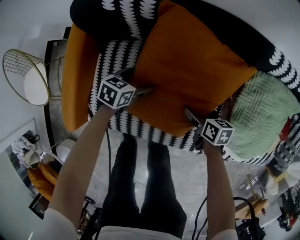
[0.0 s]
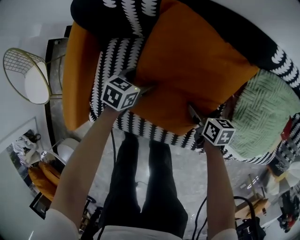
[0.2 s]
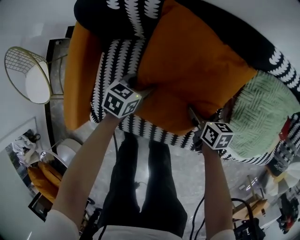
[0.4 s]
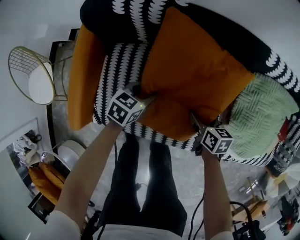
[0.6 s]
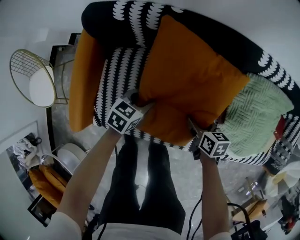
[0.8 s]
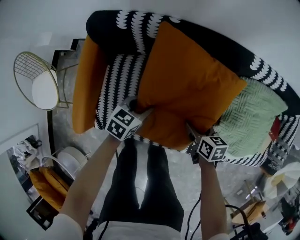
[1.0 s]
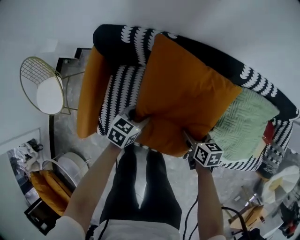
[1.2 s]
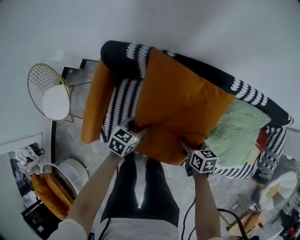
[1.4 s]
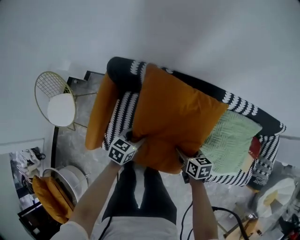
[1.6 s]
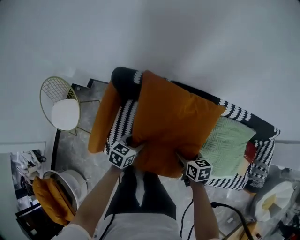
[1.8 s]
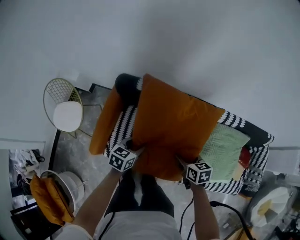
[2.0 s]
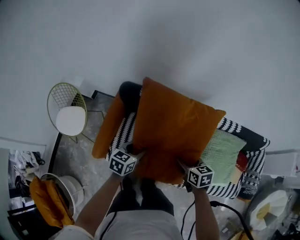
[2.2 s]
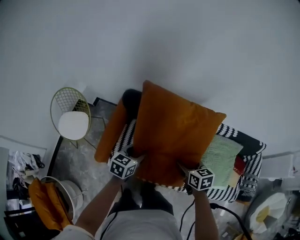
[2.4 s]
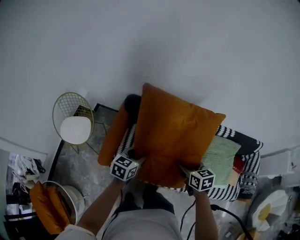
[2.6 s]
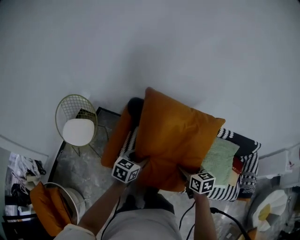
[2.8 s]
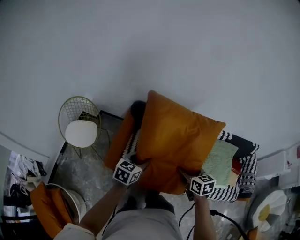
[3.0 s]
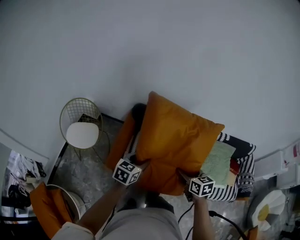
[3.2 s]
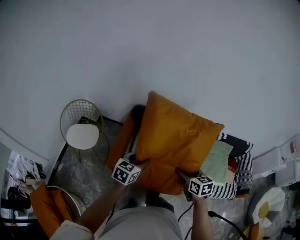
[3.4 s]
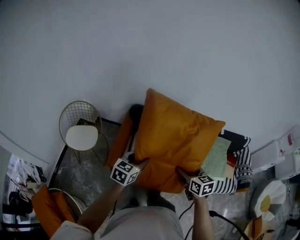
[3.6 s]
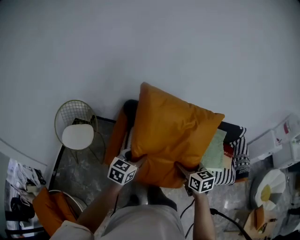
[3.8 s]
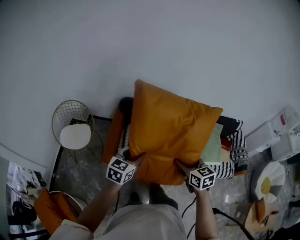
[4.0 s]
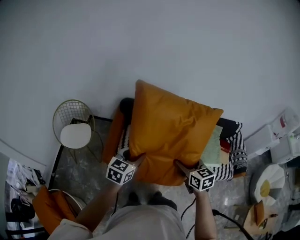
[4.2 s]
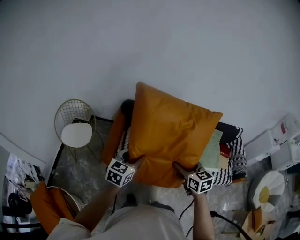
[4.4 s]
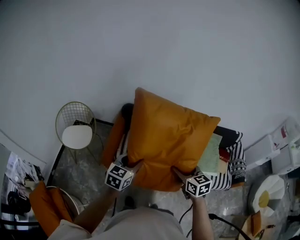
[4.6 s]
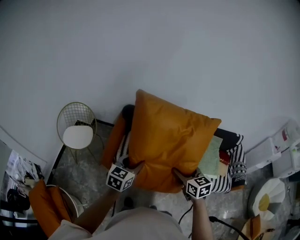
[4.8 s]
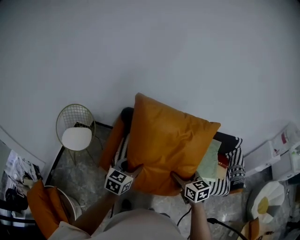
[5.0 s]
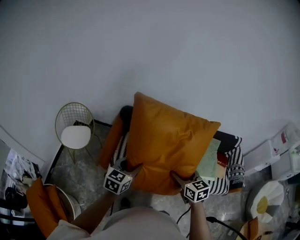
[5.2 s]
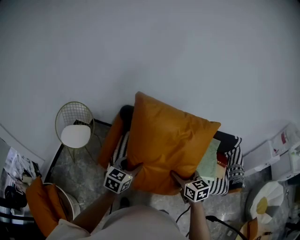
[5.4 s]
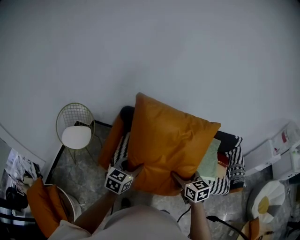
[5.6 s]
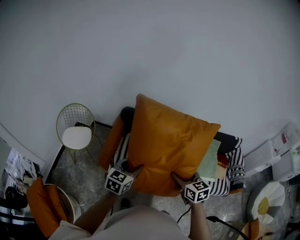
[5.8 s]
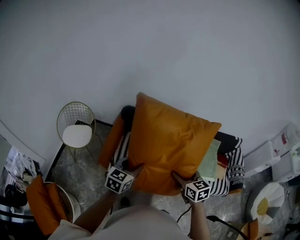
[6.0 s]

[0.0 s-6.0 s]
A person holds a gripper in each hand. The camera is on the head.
0.0 to 1.6 s: The grippers both shift upward by about 30 cm. The right gripper closes its fingers; the left gripper closes.
1.6 to 3.0 s: The two grippers go about 40 cm upward, backward and to the left.
3.0 to 4.4 s: The grippers both shift backward and upward by approximately 20 cm.
4.4 to 6.0 s: Both grippers move to the right, some 5 cm.

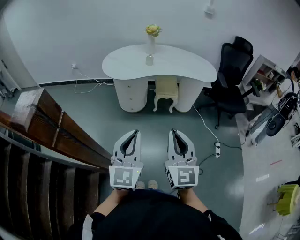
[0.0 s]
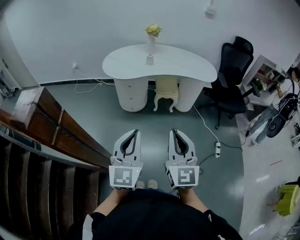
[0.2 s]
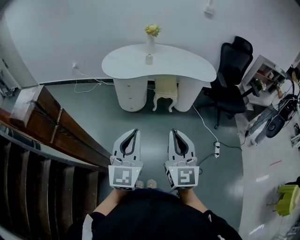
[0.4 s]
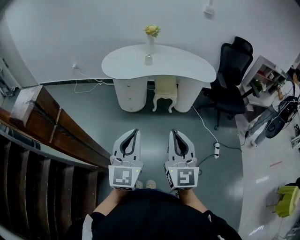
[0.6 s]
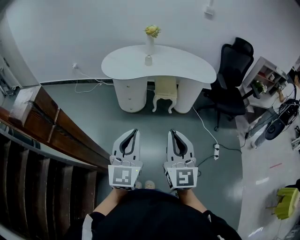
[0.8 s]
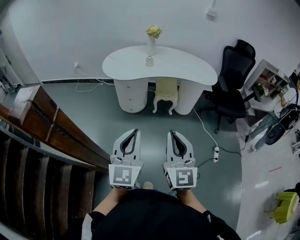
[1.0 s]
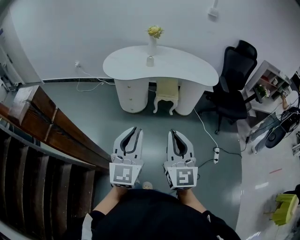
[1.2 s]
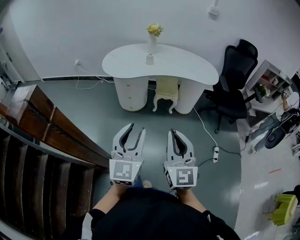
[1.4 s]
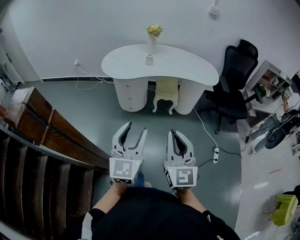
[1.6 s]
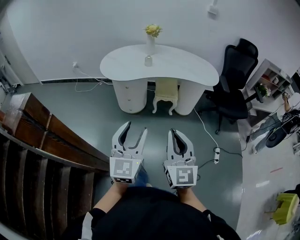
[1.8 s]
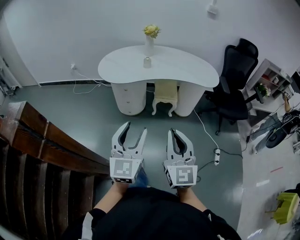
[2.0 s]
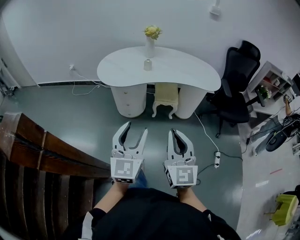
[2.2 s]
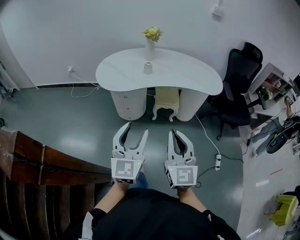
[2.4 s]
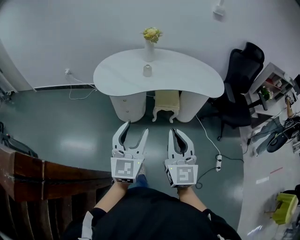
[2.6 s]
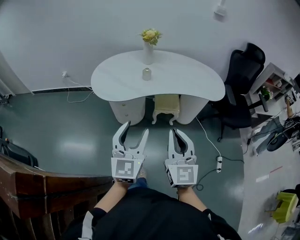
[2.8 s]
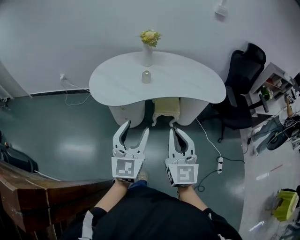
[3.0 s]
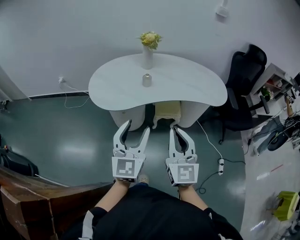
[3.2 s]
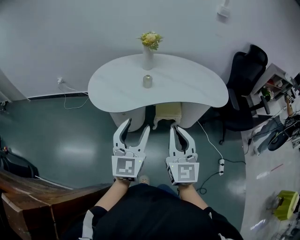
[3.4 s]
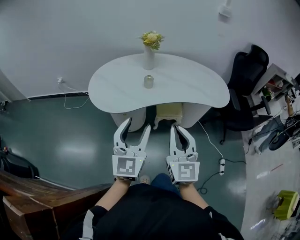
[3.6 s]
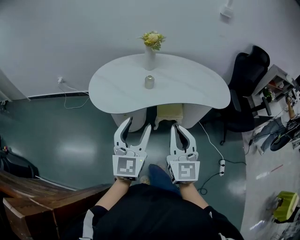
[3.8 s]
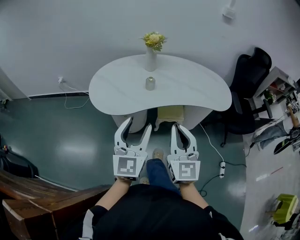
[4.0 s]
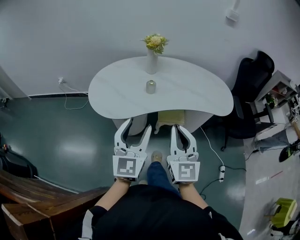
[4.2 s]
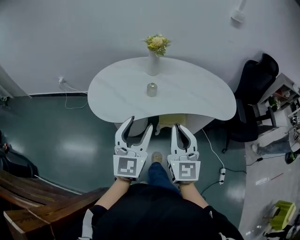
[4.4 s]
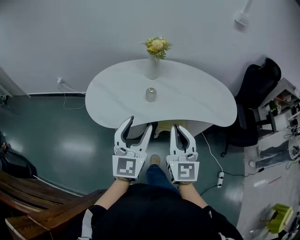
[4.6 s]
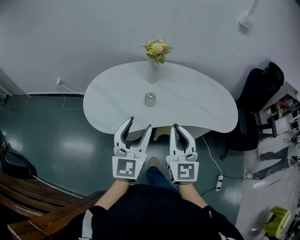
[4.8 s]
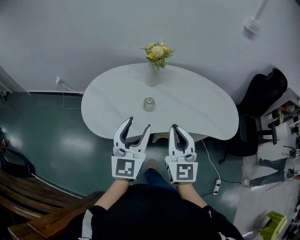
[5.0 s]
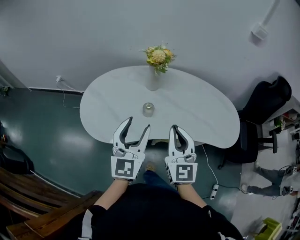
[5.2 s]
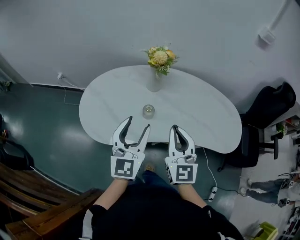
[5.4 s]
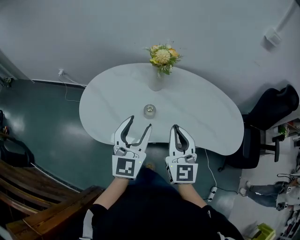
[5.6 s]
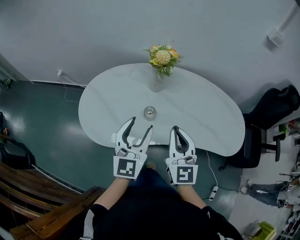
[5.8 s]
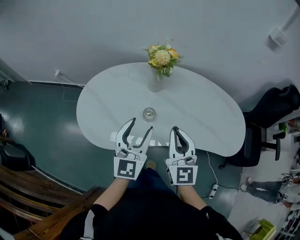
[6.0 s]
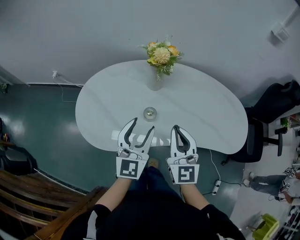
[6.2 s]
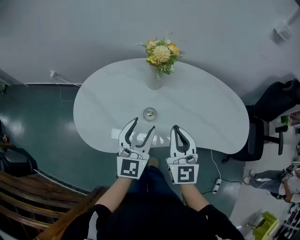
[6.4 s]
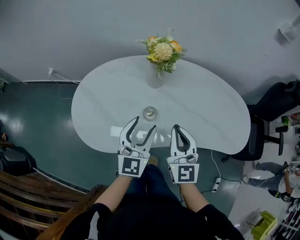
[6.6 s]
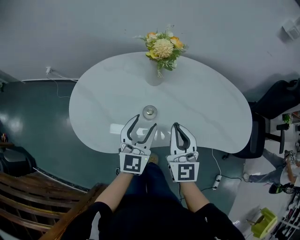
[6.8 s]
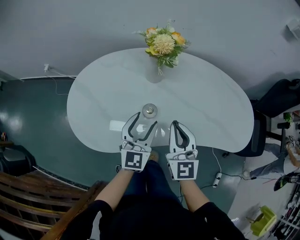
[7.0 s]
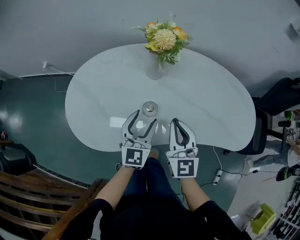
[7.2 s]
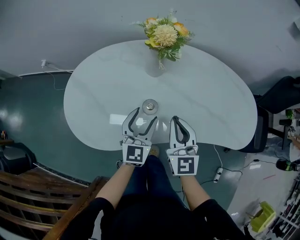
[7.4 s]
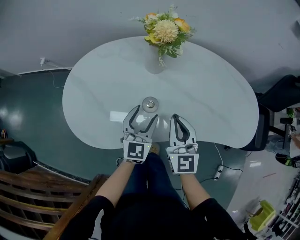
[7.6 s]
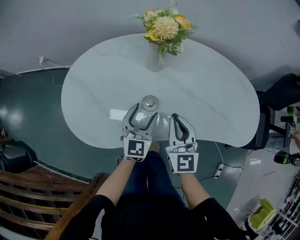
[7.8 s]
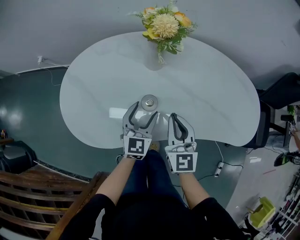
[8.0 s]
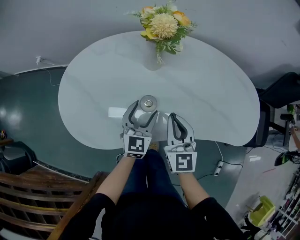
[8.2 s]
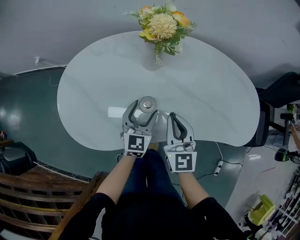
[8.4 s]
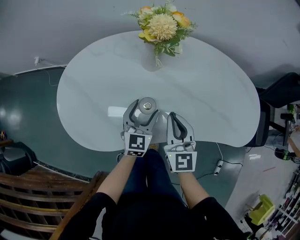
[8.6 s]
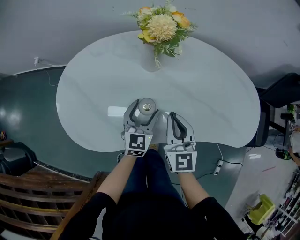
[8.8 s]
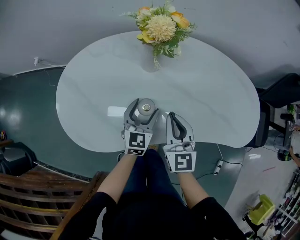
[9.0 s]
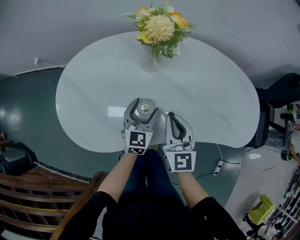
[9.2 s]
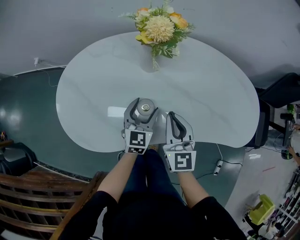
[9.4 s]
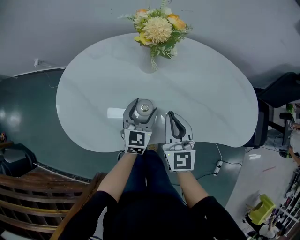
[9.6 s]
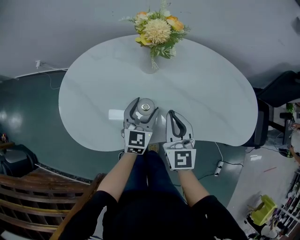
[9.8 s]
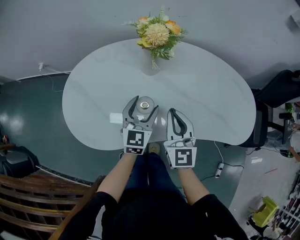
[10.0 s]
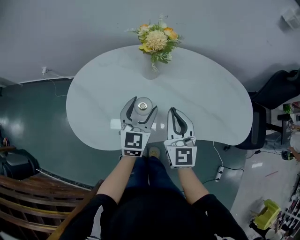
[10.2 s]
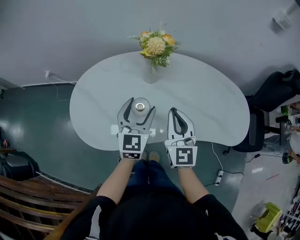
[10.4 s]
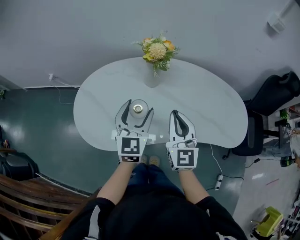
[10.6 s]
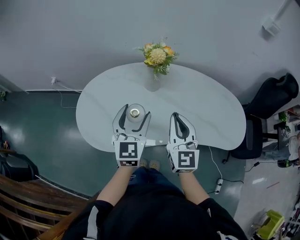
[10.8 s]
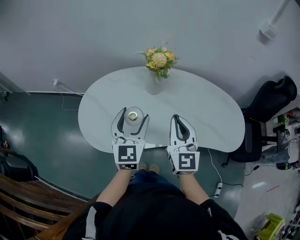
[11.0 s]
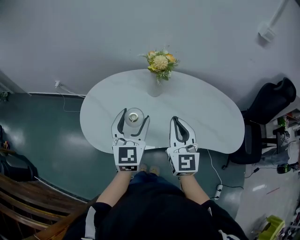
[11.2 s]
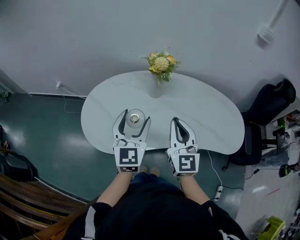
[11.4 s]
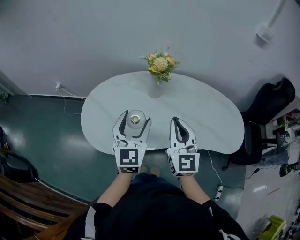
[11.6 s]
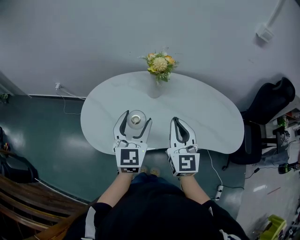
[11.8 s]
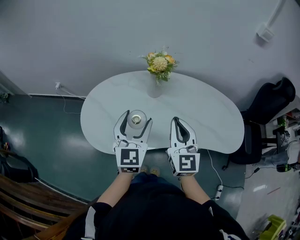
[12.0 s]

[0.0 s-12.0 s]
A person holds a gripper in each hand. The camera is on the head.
0.0 to 1.6 s: The right gripper ends up approximately 5 cm from where it was. Meanwhile the left gripper goes some 5 cm to the right, and opens its fingers.
1.6 to 3.0 s: Both grippers move forward, roughly 30 cm.
3.0 to 4.4 s: Both grippers travel together forward, about 15 cm.
4.4 to 6.0 s: The grippers both shift forward by about 25 cm.
6.0 to 7.6 s: The two grippers go roughly 15 cm downward and forward.
7.6 to 9.0 s: The left gripper changes place by roughly 5 cm.
9.0 to 10.4 s: The left gripper moves upward, some 15 cm, while the right gripper heads upward, covering about 10 cm.
10.4 to 12.0 s: The left gripper goes approximately 10 cm upward and backward; the right gripper is displaced upward by approximately 10 cm.

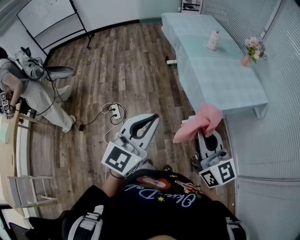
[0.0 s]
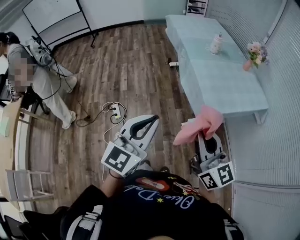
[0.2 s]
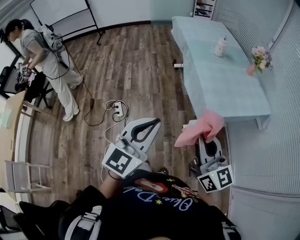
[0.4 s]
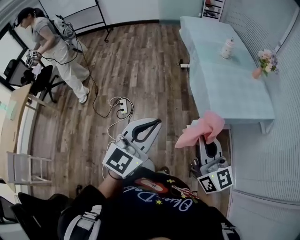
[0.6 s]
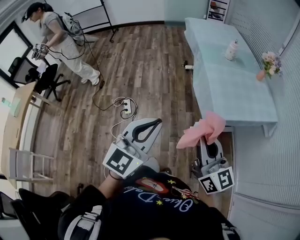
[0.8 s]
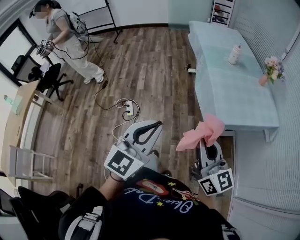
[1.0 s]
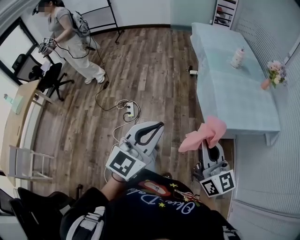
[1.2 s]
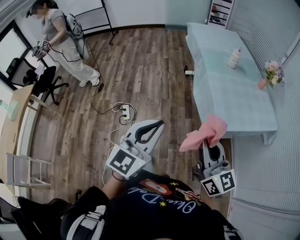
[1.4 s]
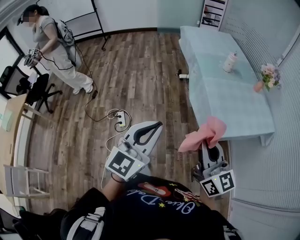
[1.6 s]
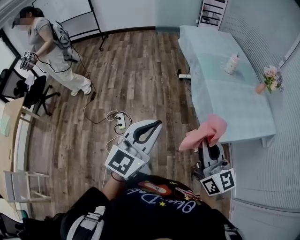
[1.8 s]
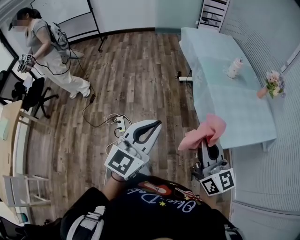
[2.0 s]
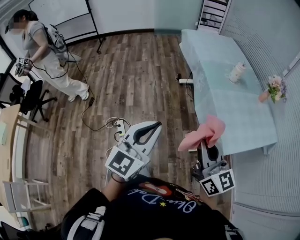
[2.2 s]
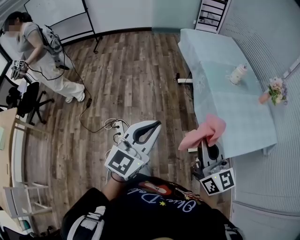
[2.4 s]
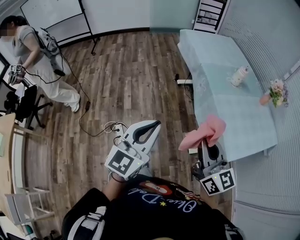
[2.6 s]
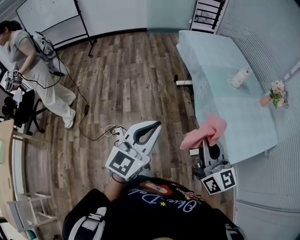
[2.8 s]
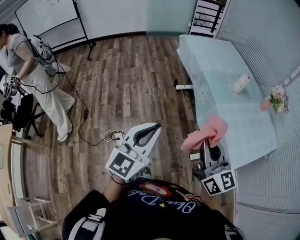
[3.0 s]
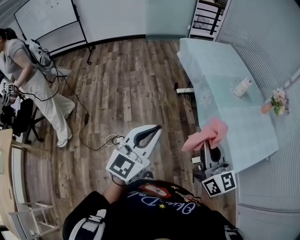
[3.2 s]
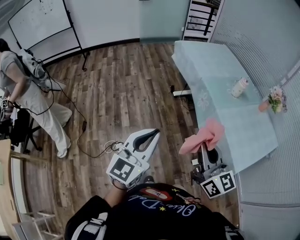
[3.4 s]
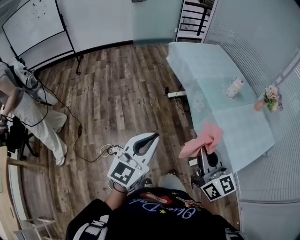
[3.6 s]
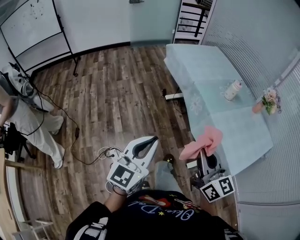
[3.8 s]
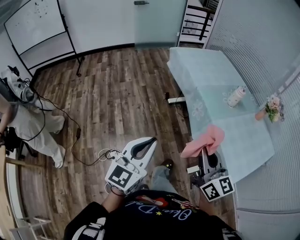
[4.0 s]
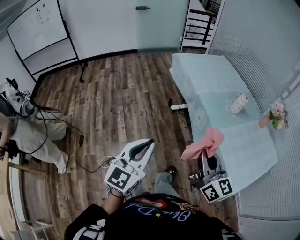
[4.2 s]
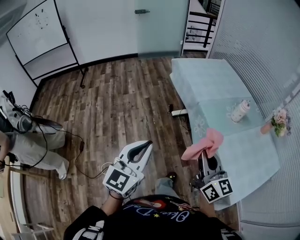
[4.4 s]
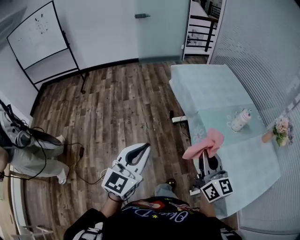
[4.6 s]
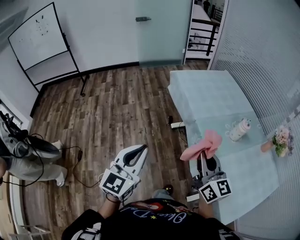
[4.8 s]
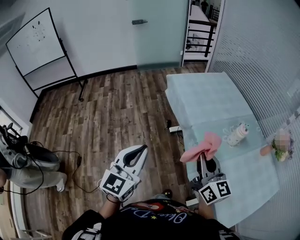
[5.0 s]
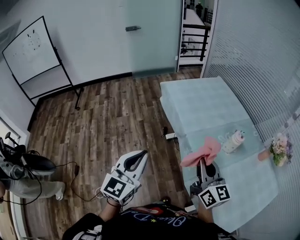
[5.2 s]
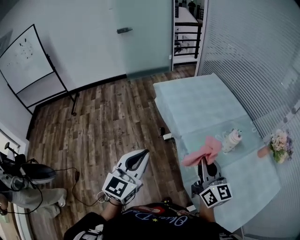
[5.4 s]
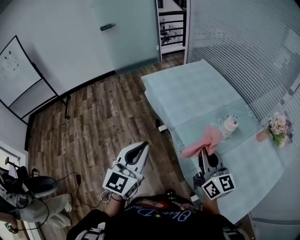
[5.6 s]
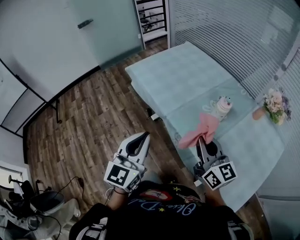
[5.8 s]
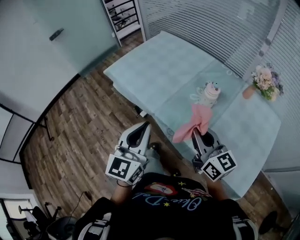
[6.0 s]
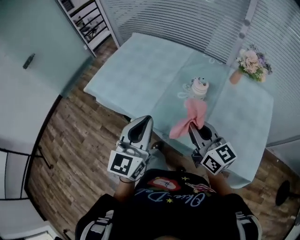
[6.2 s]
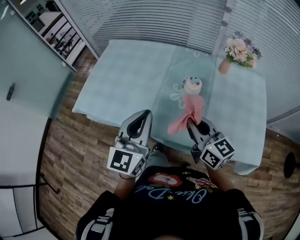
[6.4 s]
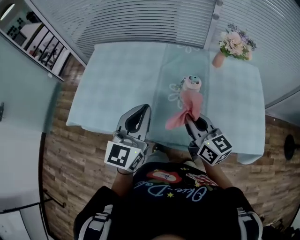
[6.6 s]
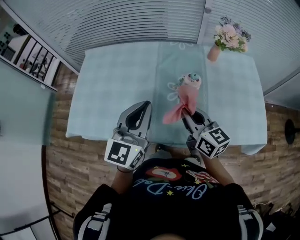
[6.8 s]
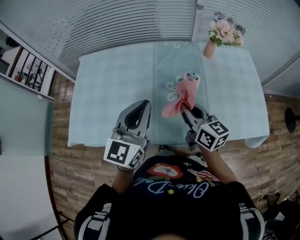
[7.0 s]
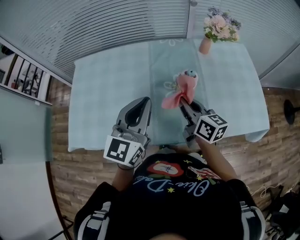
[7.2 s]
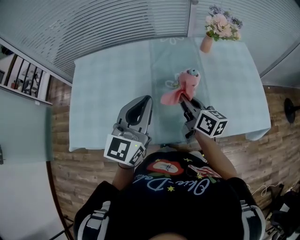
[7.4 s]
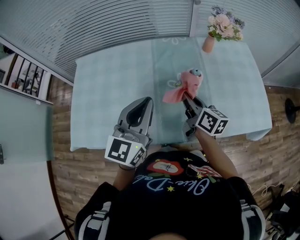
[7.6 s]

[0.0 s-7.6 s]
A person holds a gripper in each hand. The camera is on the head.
0.0 to 1.6 s: The grippers both shift forward by roughly 5 cm.
1.6 to 3.0 s: Both grippers move forward and to the left, roughly 30 cm.
3.0 to 4.6 s: Both grippers move forward, some 25 cm.
4.6 to 6.0 s: The left gripper moves forward and to the right, roughly 35 cm, and swivels approximately 30 degrees. The right gripper travels forward, to the right and downward by roughly 25 cm.
6.0 to 7.6 s: The right gripper ends up some 20 cm from where it was, and changes its angle by some 60 degrees, while the left gripper moves roughly 25 cm, and changes its angle by some 50 degrees.
